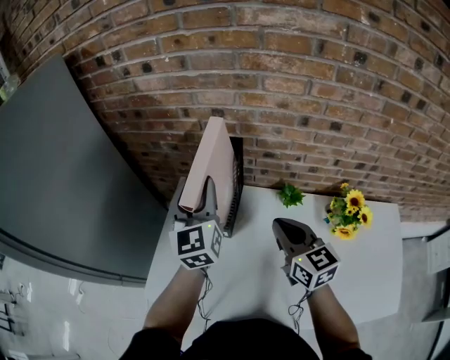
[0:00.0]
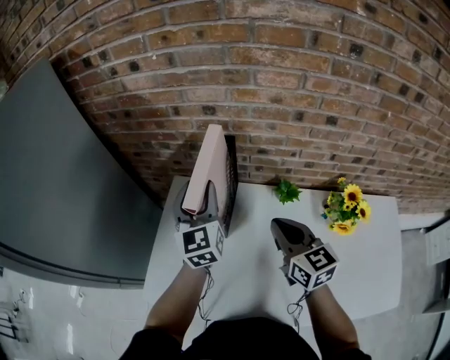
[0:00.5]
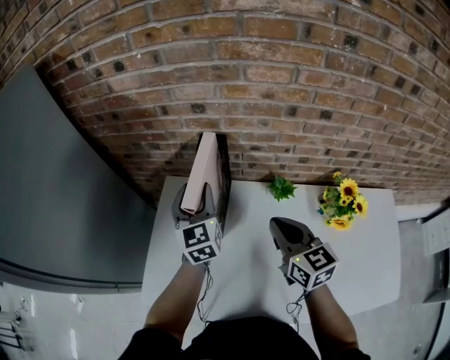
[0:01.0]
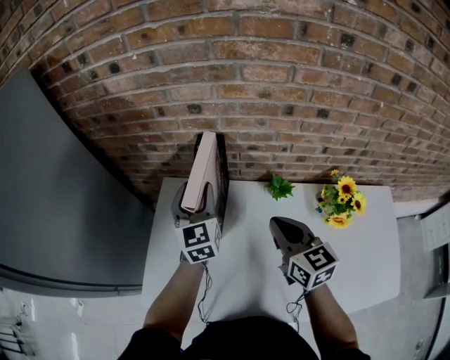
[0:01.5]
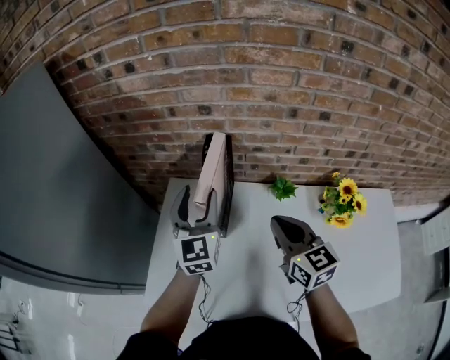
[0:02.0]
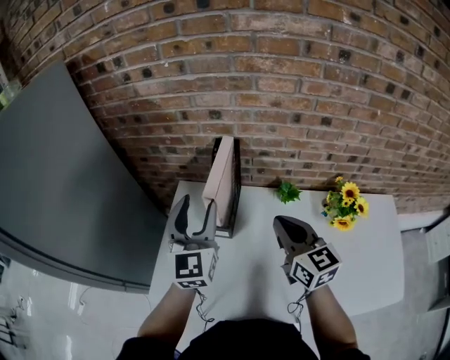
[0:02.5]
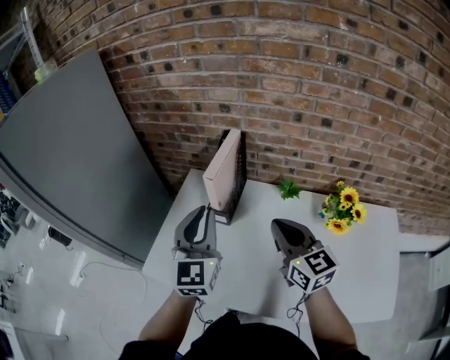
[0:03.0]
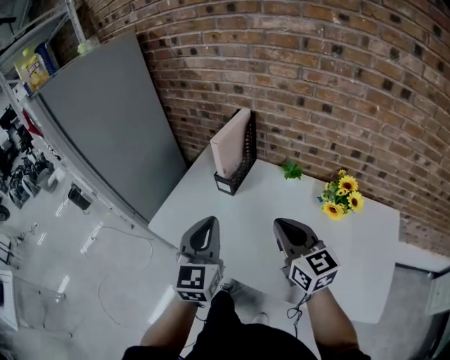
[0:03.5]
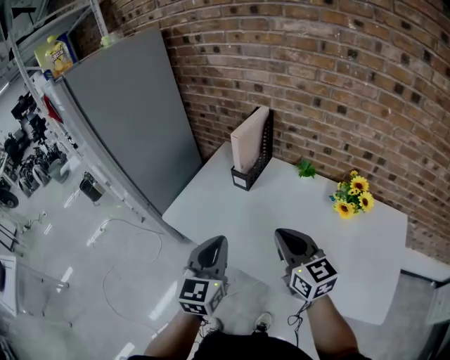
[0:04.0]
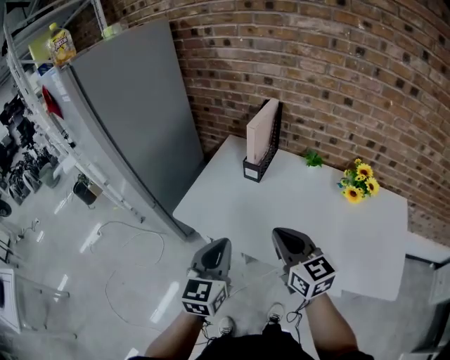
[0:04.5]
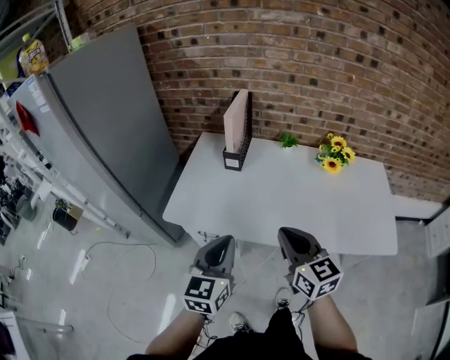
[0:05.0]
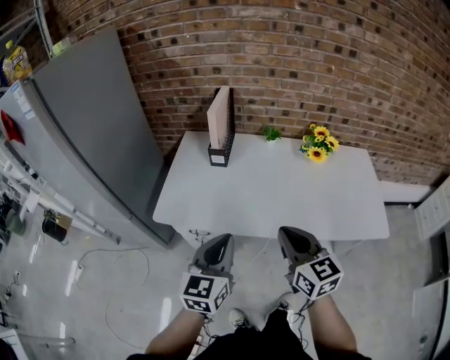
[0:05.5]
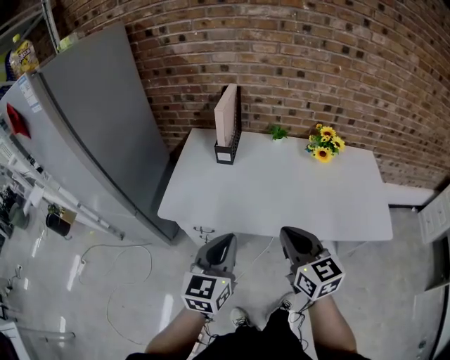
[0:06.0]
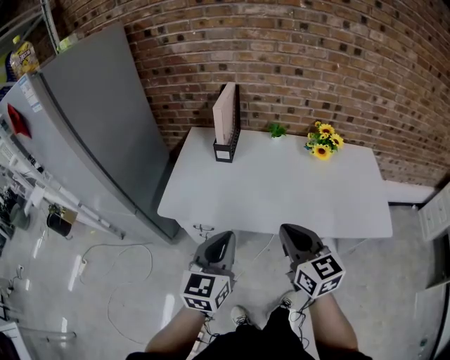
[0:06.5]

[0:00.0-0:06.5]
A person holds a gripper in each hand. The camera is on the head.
0:02.0 to 0:04.5: The left gripper is displaced backward by approximately 40 cm, and closes its fingers; the right gripper shifts approximately 30 cm backward and to the left, and changes its angle by roughly 20 degrees.
0:04.5 to 0:06.5: The right gripper goes roughly 10 cm backward, and turns by some 20 degrees; the left gripper heads backward, covering about 5 cm.

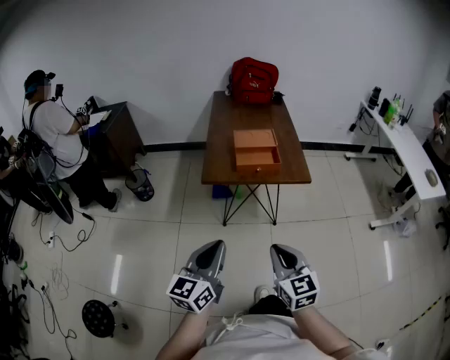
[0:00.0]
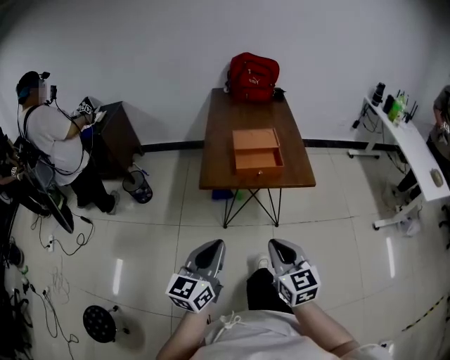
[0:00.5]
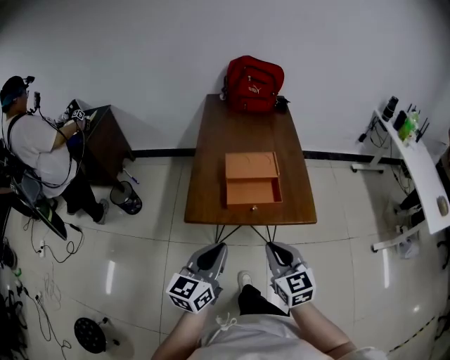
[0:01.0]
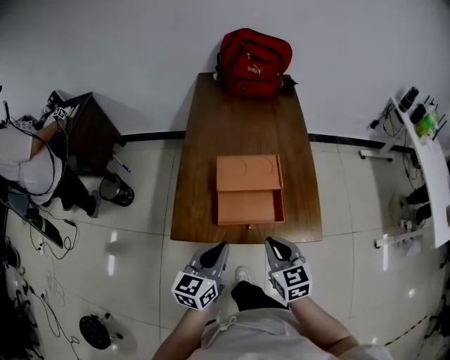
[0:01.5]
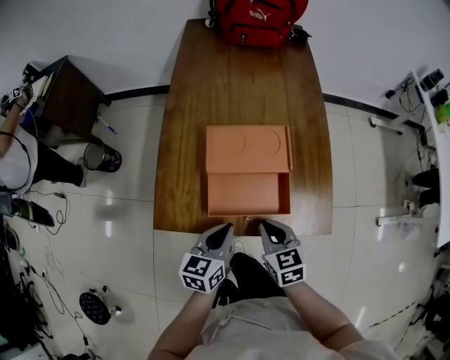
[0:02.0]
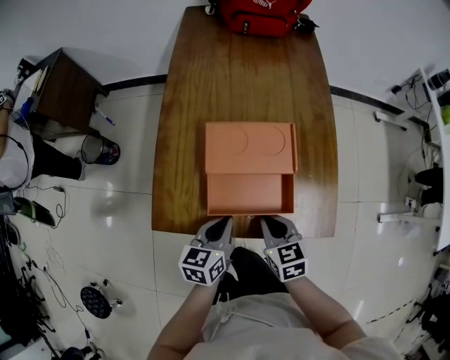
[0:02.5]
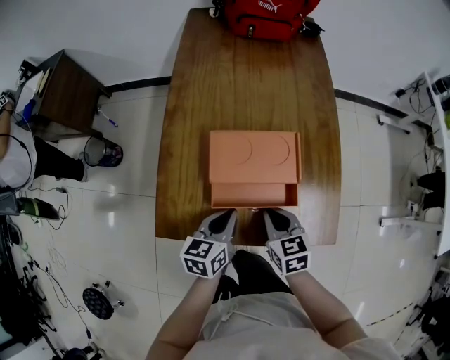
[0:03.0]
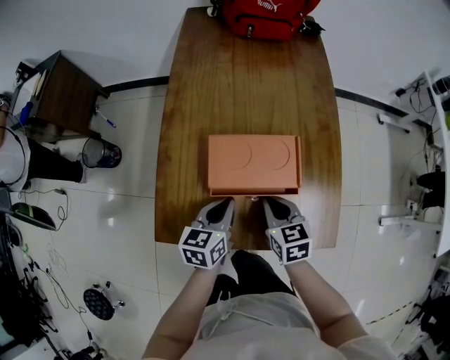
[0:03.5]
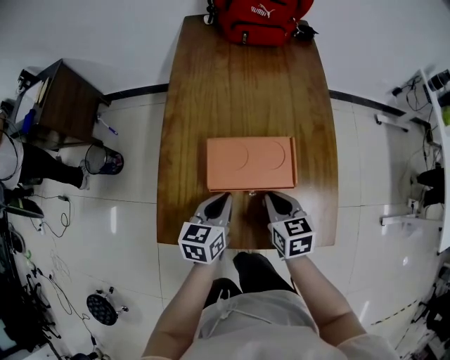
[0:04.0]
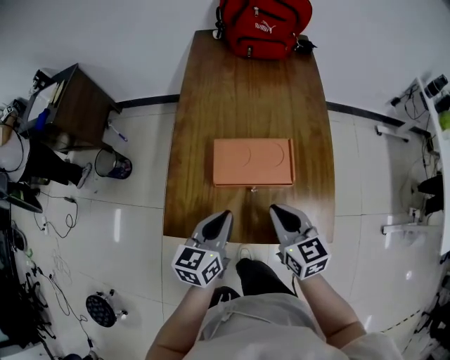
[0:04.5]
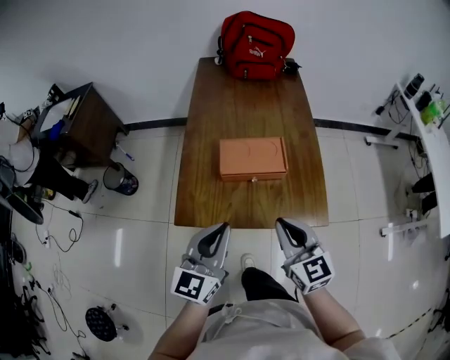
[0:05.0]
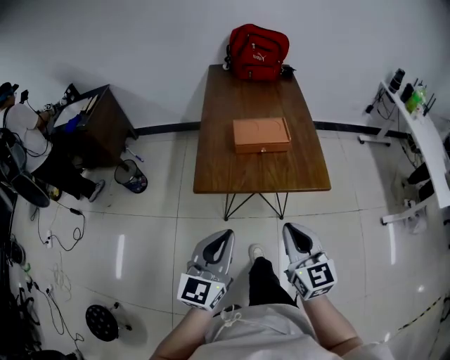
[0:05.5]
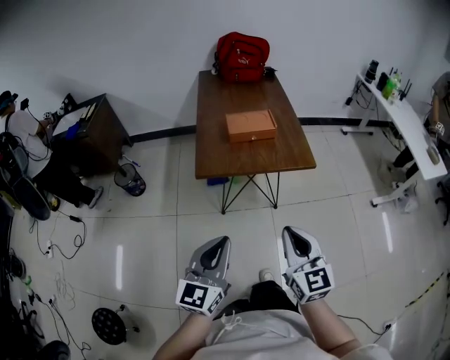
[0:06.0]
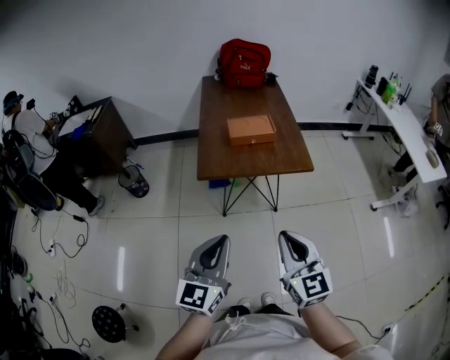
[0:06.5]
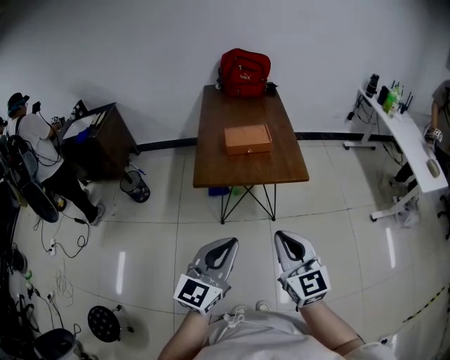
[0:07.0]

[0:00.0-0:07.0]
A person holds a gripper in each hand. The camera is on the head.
0:00.0 to 0:02.0: The two grippers travel together, forward, roughly 50 cm. Both grippers move downward, roughly 25 cm. The right gripper changes its angle by some 30 degrees. The left gripper rotates approximately 30 degrees.
0:02.0 to 0:03.5: Both grippers travel together forward, approximately 10 cm.
0:03.5 to 0:05.0: The grippers both shift upward and backward by roughly 25 cm. The left gripper changes its angle by about 40 degrees. Meanwhile the right gripper changes its angle by approximately 30 degrees.
0:05.0 to 0:07.0: The two grippers go roughly 35 cm backward.

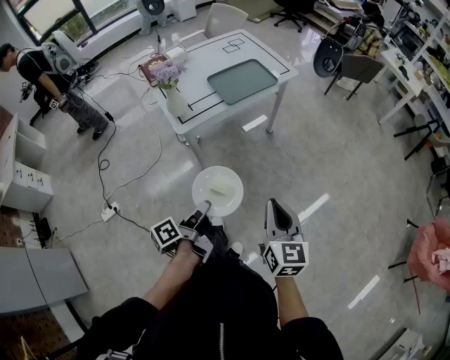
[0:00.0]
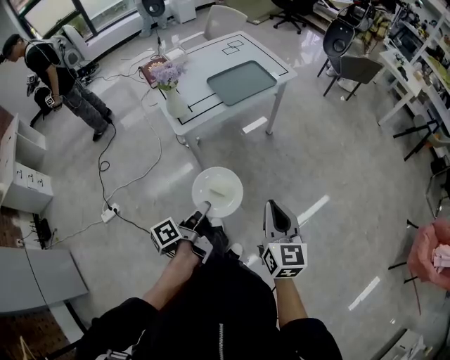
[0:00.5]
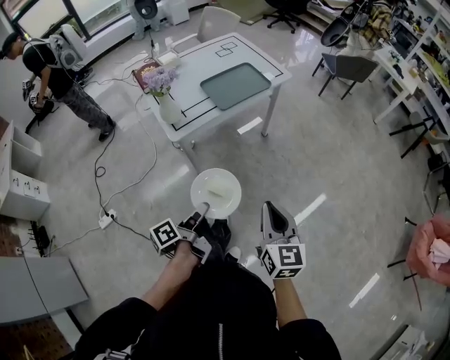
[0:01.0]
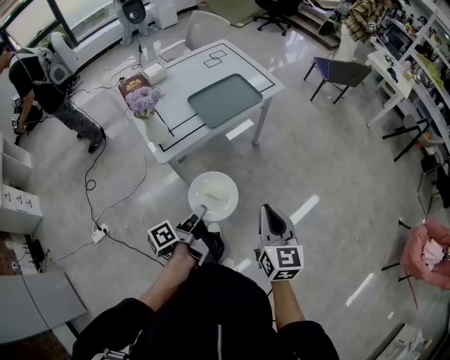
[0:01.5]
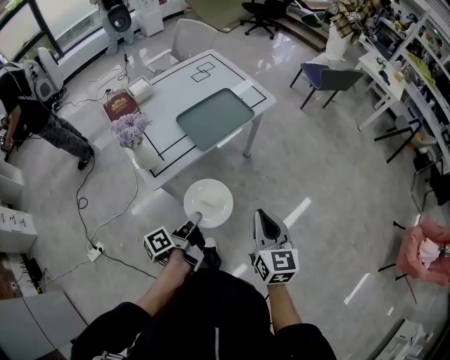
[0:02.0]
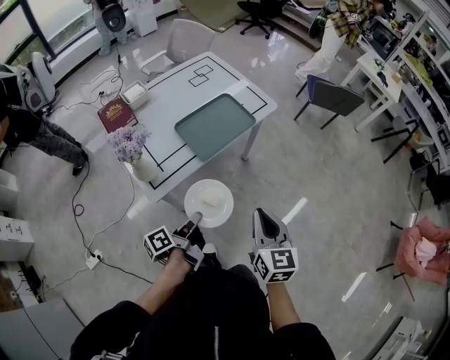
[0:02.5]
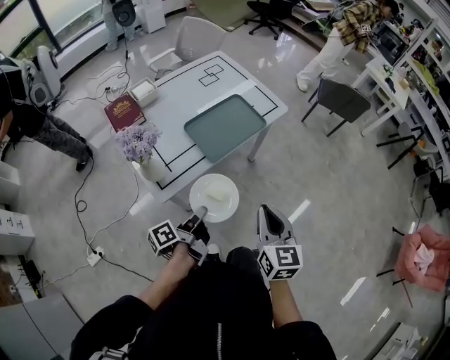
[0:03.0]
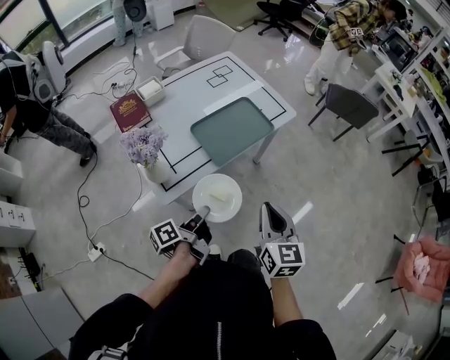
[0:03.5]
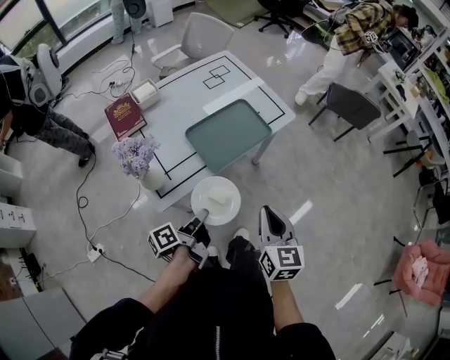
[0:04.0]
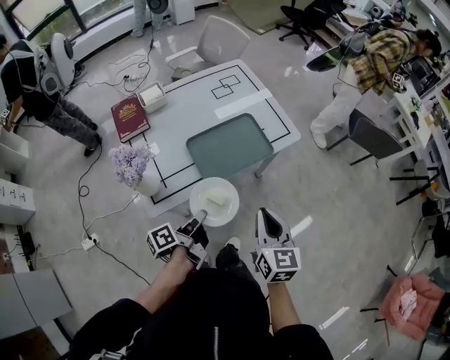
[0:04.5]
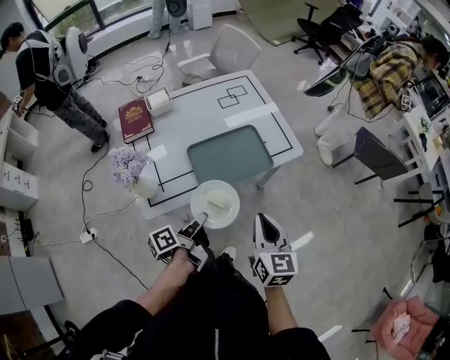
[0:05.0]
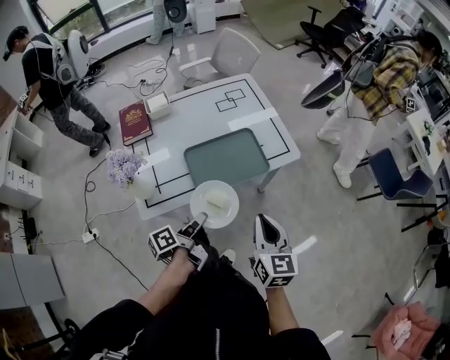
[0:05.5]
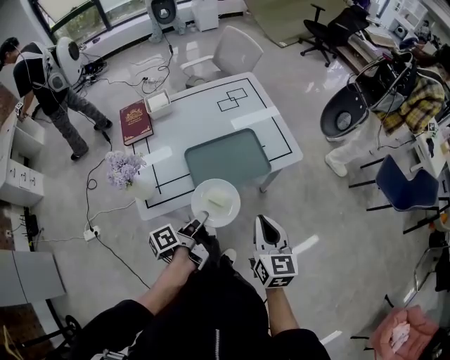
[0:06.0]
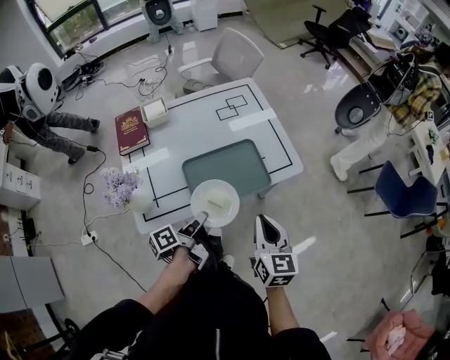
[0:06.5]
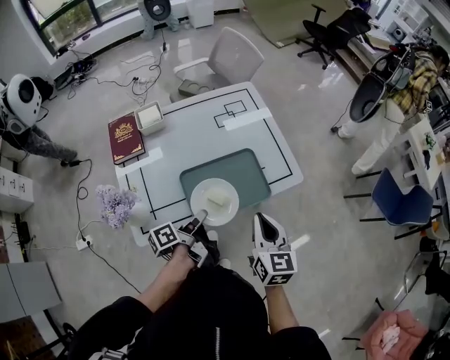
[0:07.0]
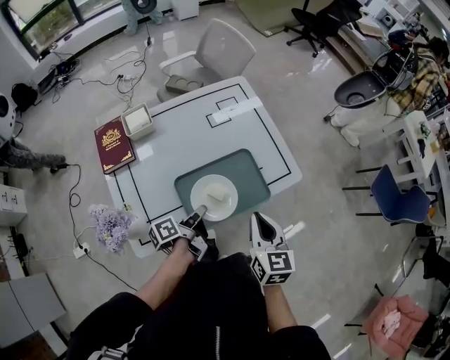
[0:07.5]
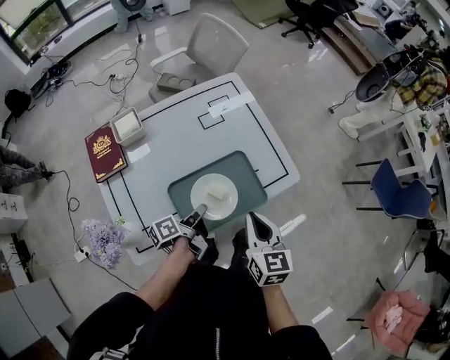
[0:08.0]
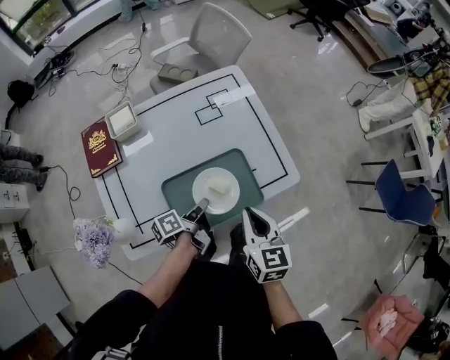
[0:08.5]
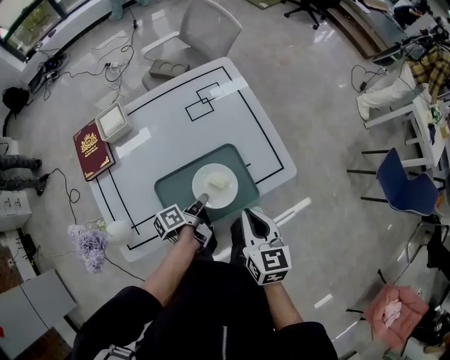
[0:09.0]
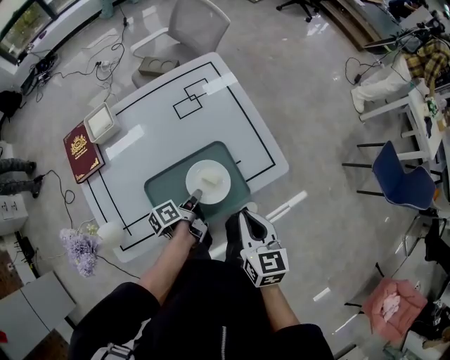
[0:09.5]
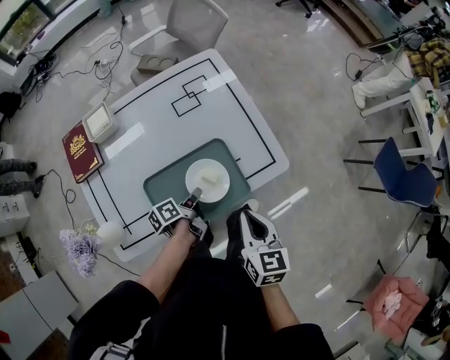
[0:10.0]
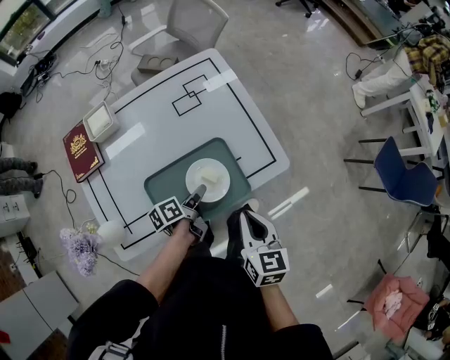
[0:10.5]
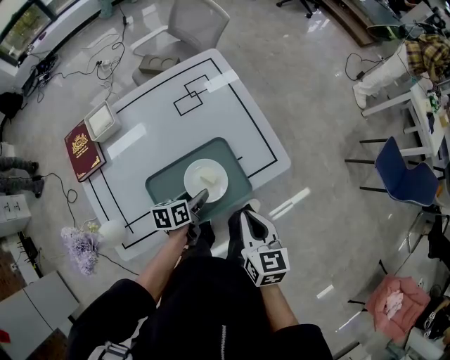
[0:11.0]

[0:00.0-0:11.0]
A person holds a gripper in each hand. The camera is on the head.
0:00.0 to 0:02.0: The right gripper changes place by some 20 cm.
0:02.0 to 0:03.5: The right gripper moves some 15 cm.
0:03.5 to 0:05.5: The right gripper shifts by roughly 15 cm.
0:05.5 to 0:07.5: The right gripper ends up roughly 20 cm from where it was.
0:07.5 to 0:09.0: The right gripper ends up some 10 cm from where it was.

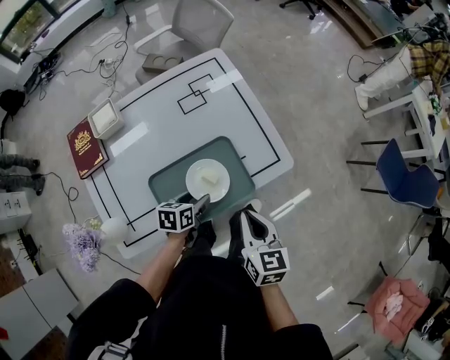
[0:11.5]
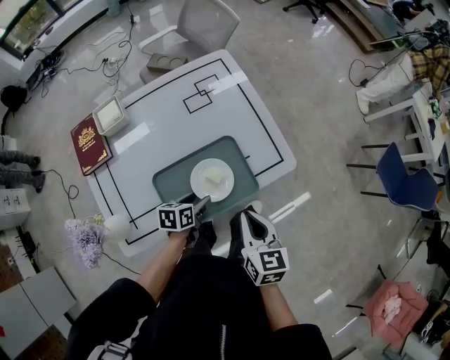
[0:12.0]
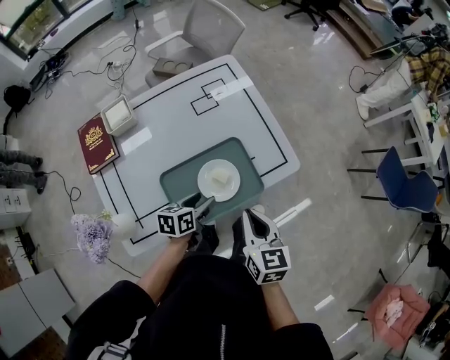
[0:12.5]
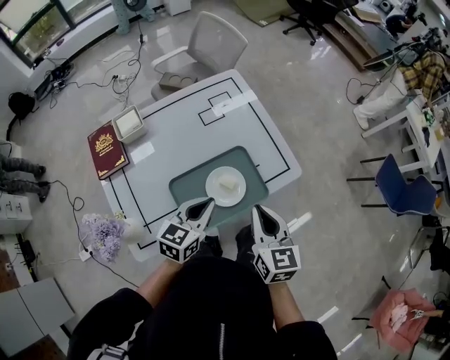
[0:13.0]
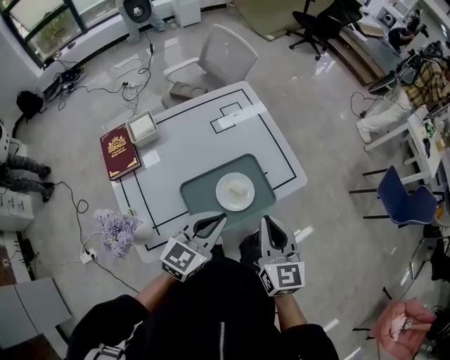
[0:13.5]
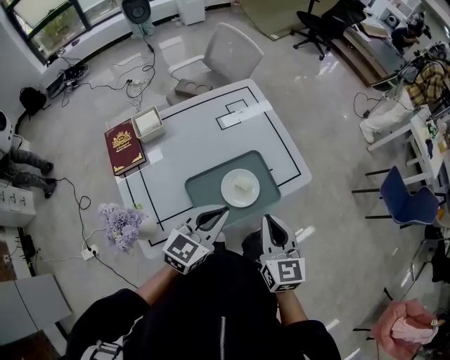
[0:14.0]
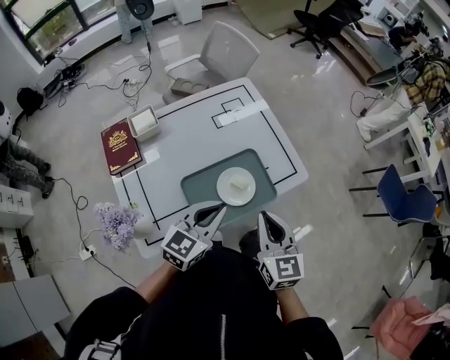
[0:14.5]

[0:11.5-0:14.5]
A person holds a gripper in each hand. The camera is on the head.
0:11.5 to 0:13.0: The right gripper is displaced upward by about 5 cm.
0:13.0 to 0:14.5: The right gripper moves roughly 5 cm.
